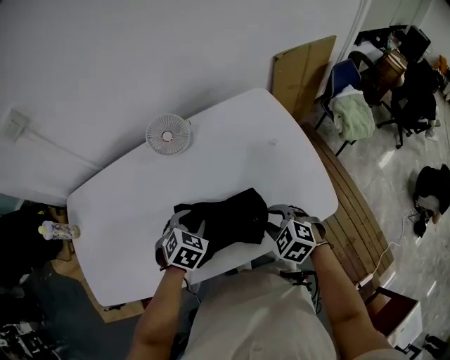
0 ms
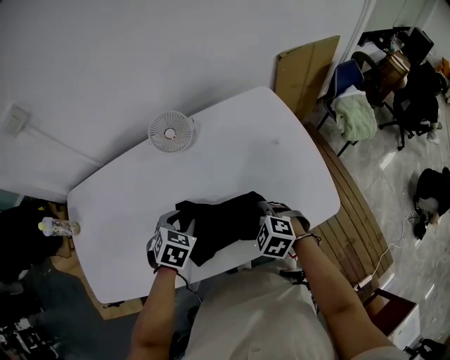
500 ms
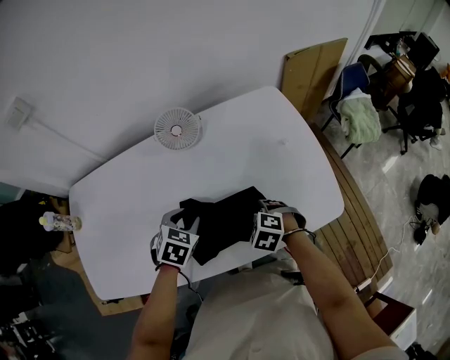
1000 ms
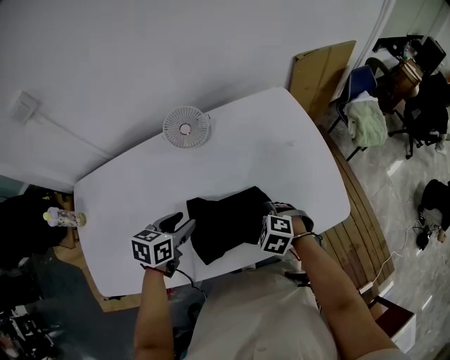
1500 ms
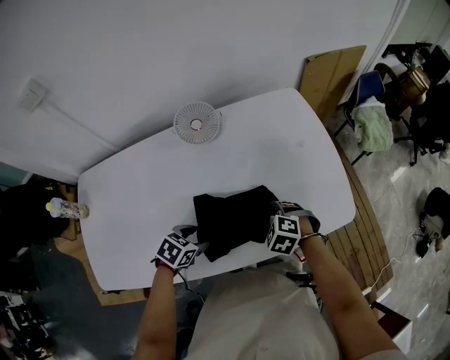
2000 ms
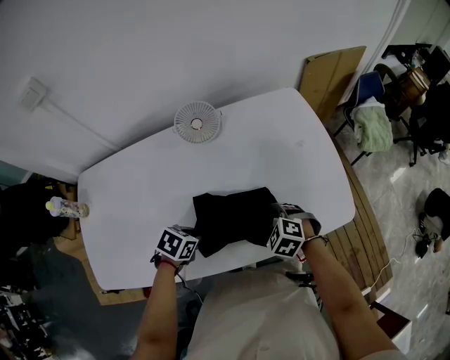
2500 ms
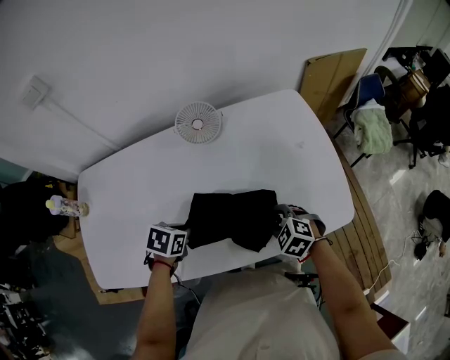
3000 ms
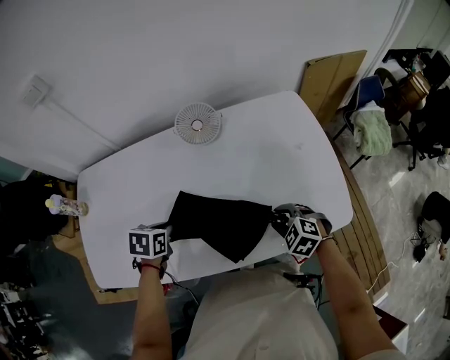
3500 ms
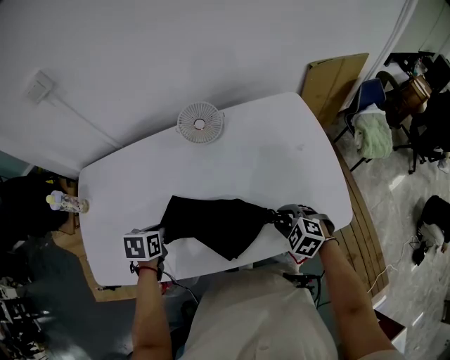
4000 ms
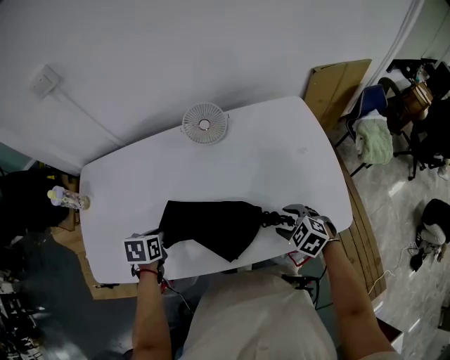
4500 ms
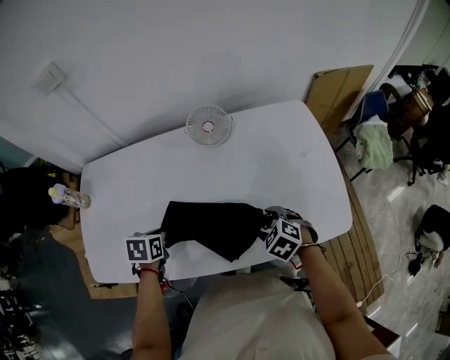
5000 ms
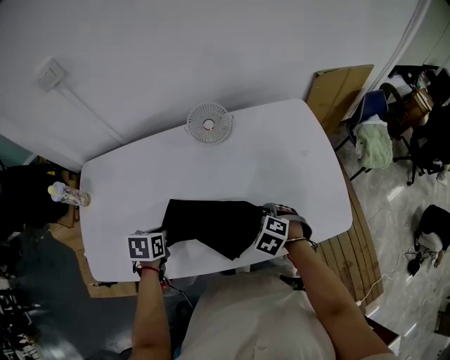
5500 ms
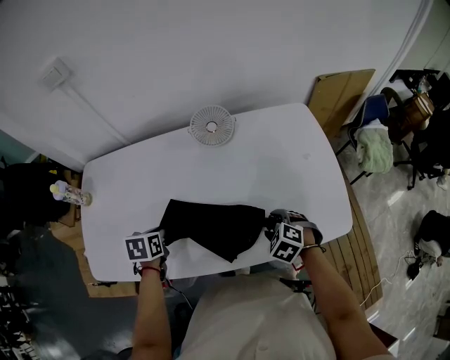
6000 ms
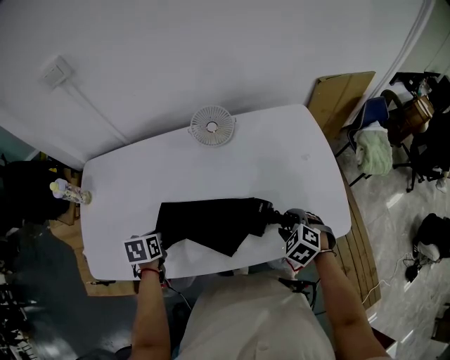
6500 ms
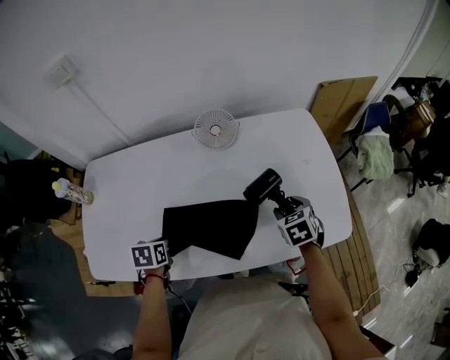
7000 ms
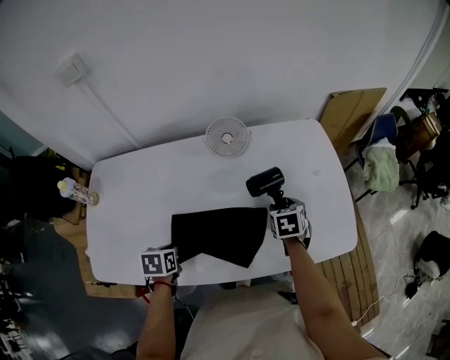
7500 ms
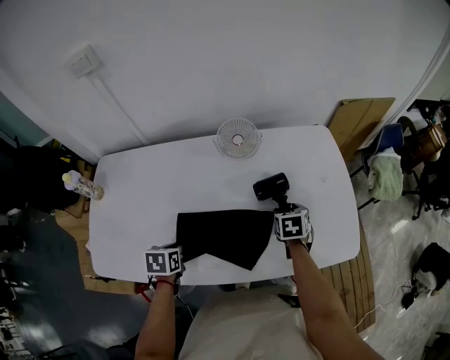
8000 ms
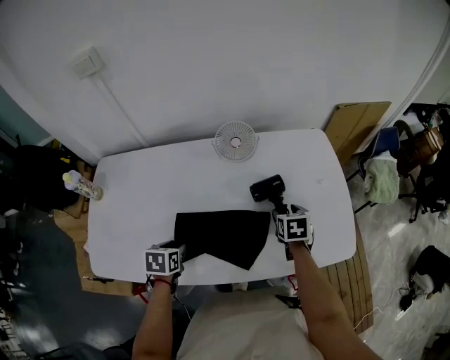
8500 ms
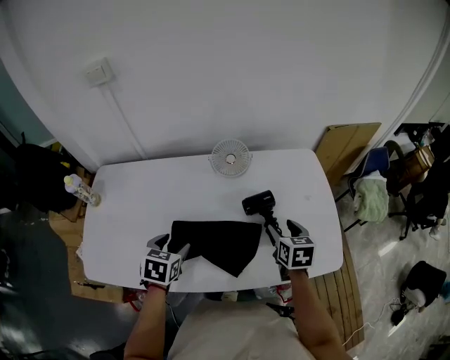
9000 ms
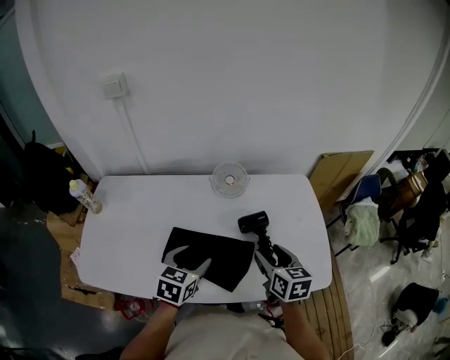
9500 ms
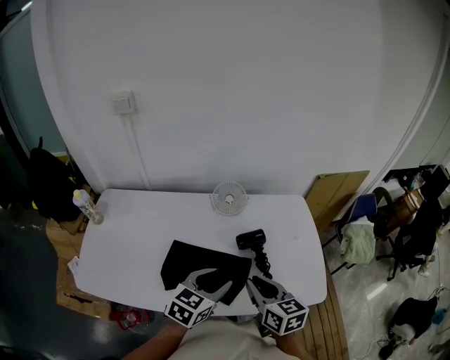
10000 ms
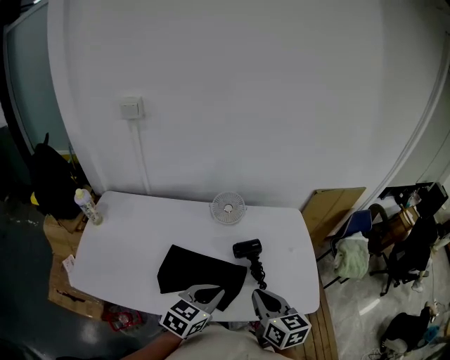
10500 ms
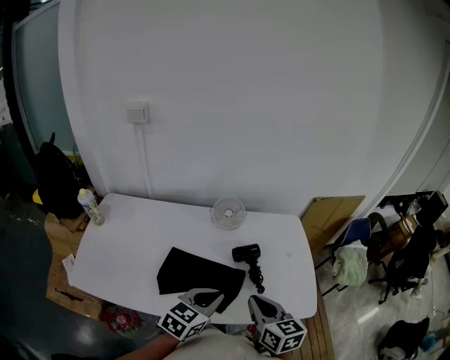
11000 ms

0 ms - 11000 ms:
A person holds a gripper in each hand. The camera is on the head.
0 ms - 2000 ms: The left gripper shifts by roughly 10 cm, and swivels about 30 degrees. The right gripper moves roughly 10 cm.
2000 ms - 3500 ms: The left gripper is displaced to the left and upward by some 10 cm, rotates roughly 30 degrees, and closes its fingers.
3500 ms - 5500 ms: The left gripper ends up roughly 5 cm from where it was. Meanwhile the right gripper goes some 5 cm to the left, and opens up.
5500 ms - 7500 ms: The right gripper goes some 10 cm forward and to the right, and rotates around the line of its fingers by some 50 degrees, clockwise from behind.
7500 ms - 9000 ms: The two grippers go roughly 10 cm upward. The left gripper turns by about 20 degrees, and opens up.
9000 ms - 11000 ms: The right gripper is displaced backward and upward by approximately 20 cm, rotates some 20 degrees, and closes; the left gripper travels to the right, upward and backward by about 25 cm, swivels roughly 30 degrees, and closes up.

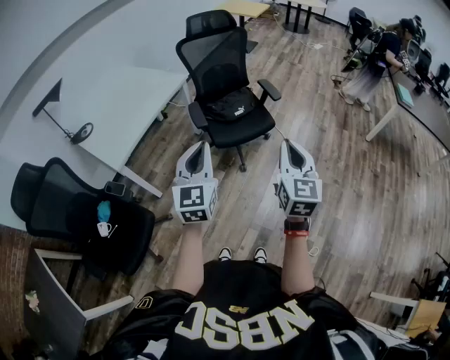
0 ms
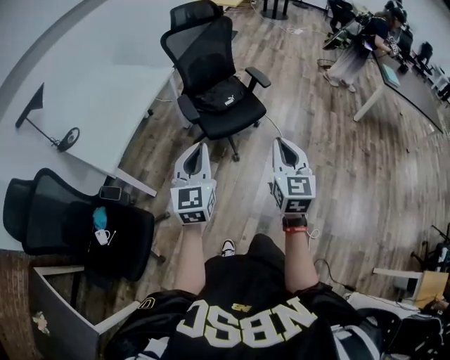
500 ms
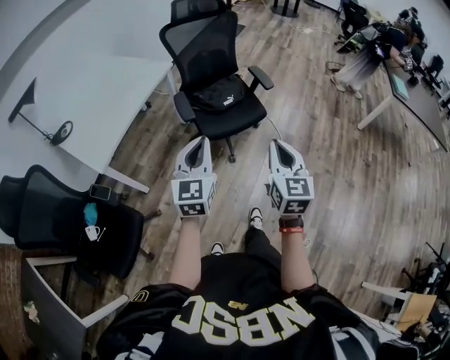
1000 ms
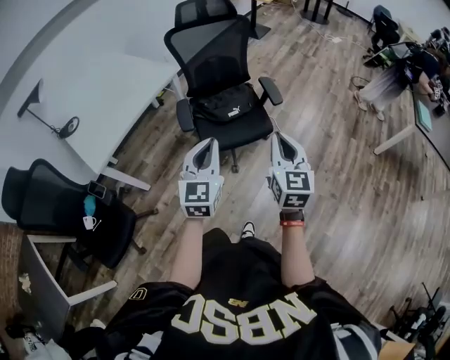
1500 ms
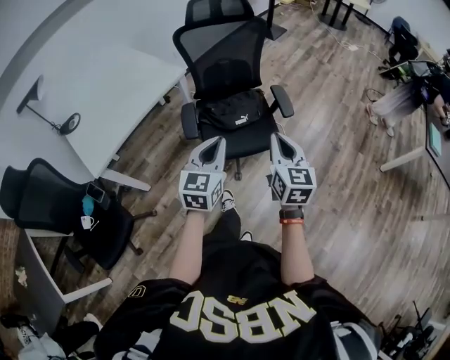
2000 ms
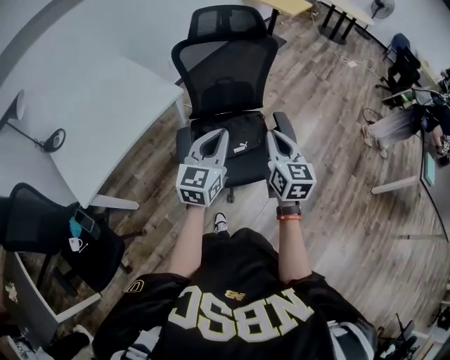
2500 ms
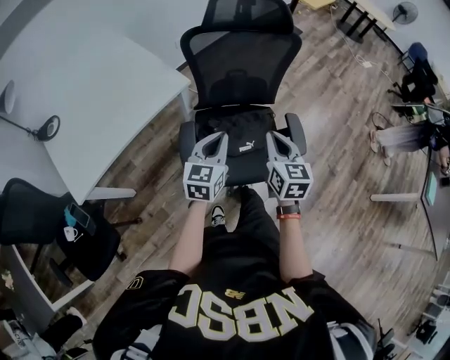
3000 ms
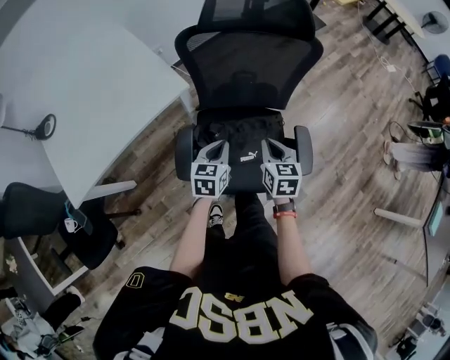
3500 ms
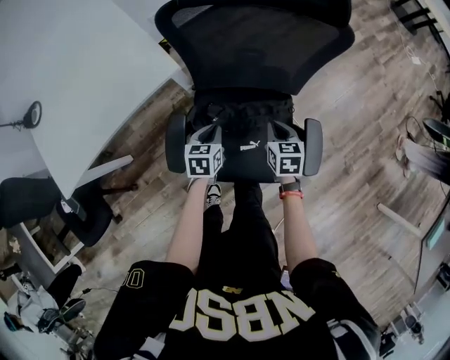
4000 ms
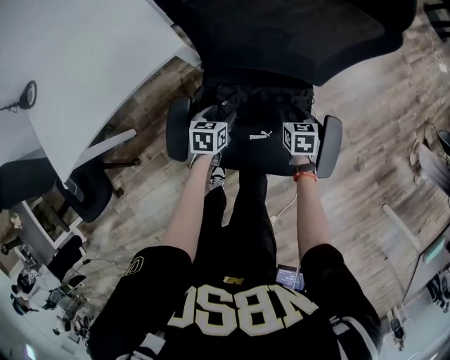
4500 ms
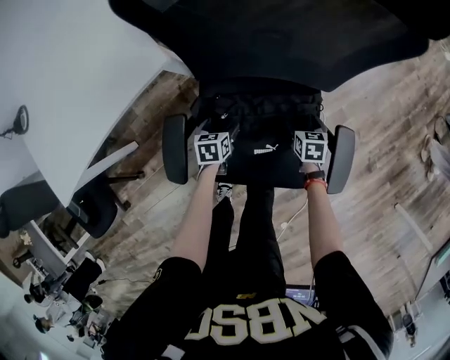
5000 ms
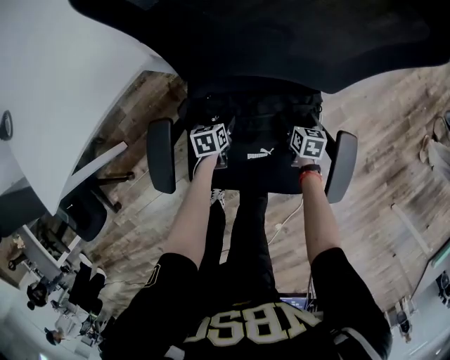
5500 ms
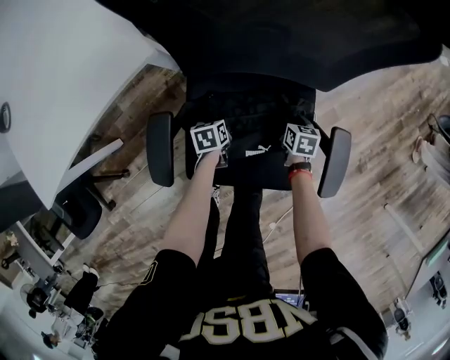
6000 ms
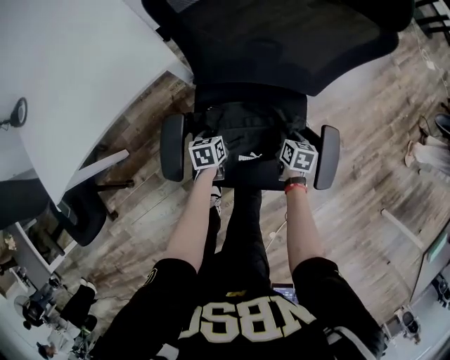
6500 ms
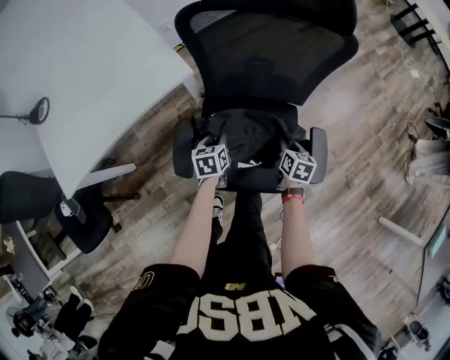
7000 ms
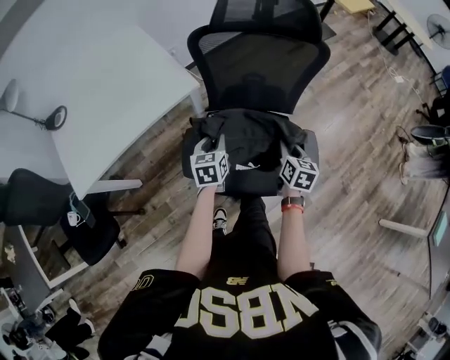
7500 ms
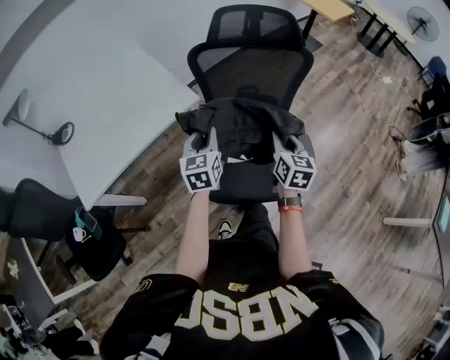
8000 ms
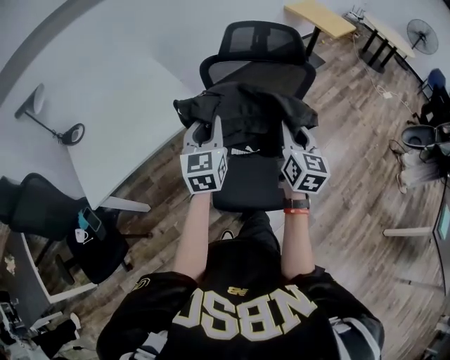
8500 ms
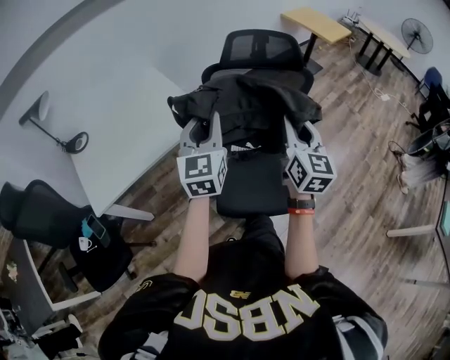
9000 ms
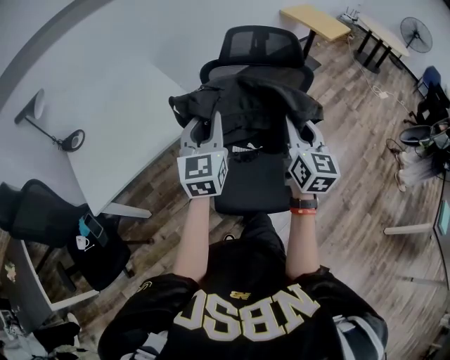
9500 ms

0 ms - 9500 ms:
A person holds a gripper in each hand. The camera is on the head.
0 ms - 2000 ms: Both grippers travel together forward, about 30 cm.
2000 ms - 4000 ms: The pair of grippers is taken forward, approximately 40 cm. Both grippers move downward, approximately 30 cm. The right gripper tilts its fingers about 30 degrees downward. The left gripper tips its fingers downward by roughly 30 degrees.
4000 ms - 5500 ms: The two grippers go some 30 cm downward. The left gripper rotates approximately 20 degrees, and opens. Meanwhile the right gripper opens its fingers.
5500 ms - 7500 ms: The two grippers go roughly 40 cm upward. The left gripper rotates some 30 degrees, and closes, while the right gripper changes its angle by about 20 degrees, and closes up.
7500 ms - 9500 ms: The grippers both shift upward by some 30 cm. The right gripper tips its fingers upward by approximately 30 degrees; the left gripper angles its fingers upward, by about 30 degrees.

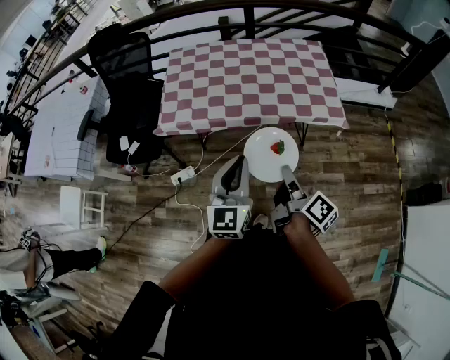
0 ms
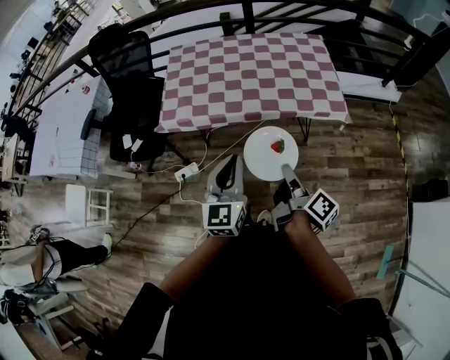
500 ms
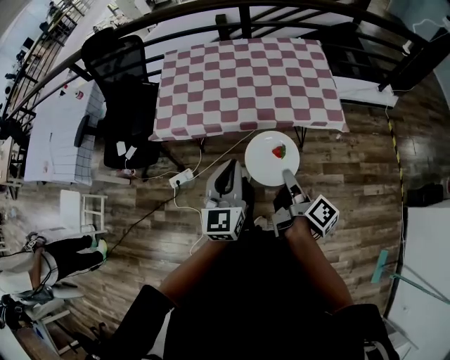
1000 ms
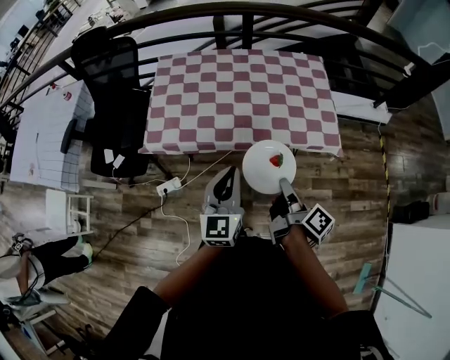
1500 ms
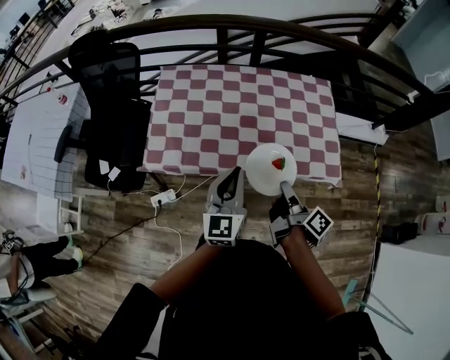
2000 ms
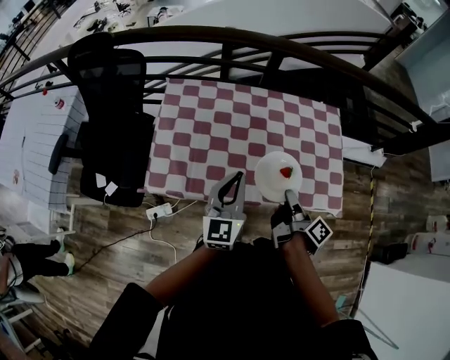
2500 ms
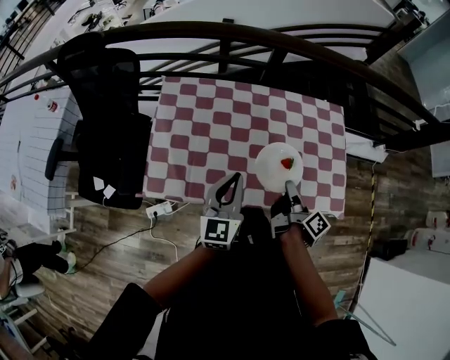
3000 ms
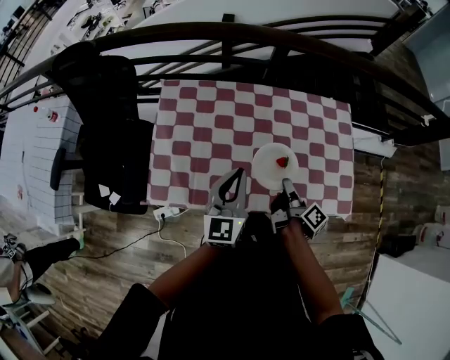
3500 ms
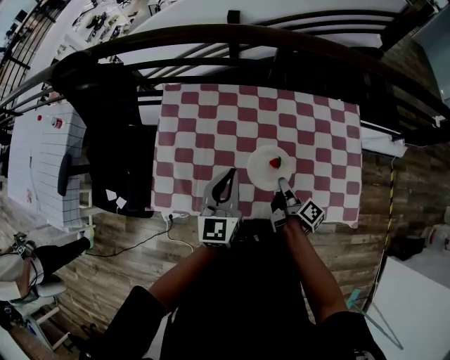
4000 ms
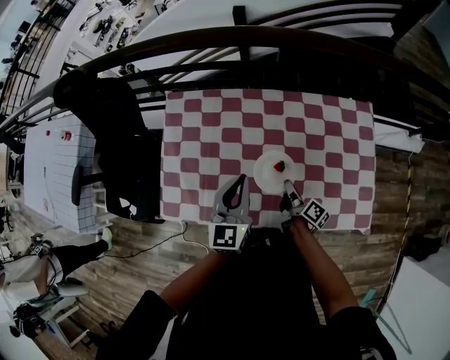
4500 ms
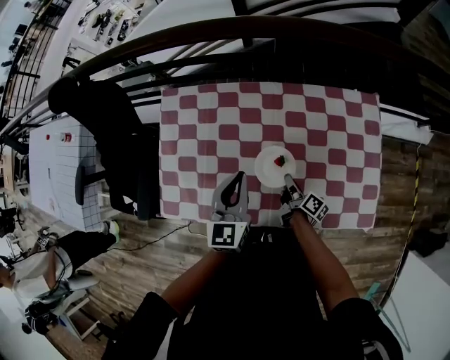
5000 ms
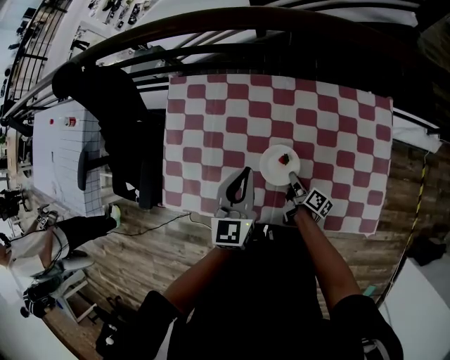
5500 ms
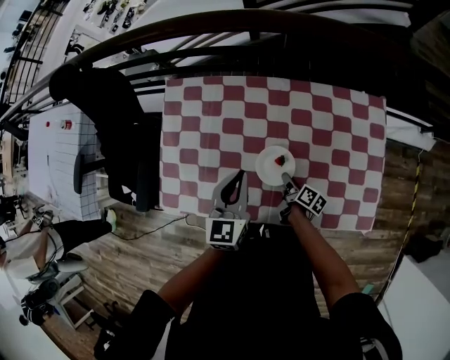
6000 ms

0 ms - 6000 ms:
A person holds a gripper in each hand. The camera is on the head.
0 ms - 2000 ms: The grippers both shift forward by approximately 25 cm.
2000 ms - 4000 ms: The left gripper shifts roughly 25 cm forward. Meanwhile the right gripper moves forward and downward, roughly 30 cm.
4000 ms - 6000 ms: The left gripper is displaced downward by approximately 5 cm, while the right gripper shifts approximately 15 cm downward, and changes its angle by roughly 20 degrees.
